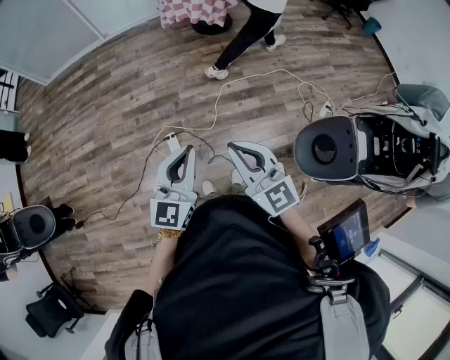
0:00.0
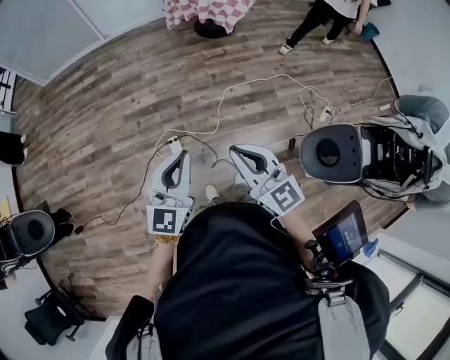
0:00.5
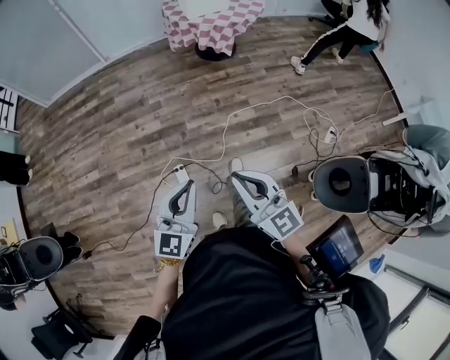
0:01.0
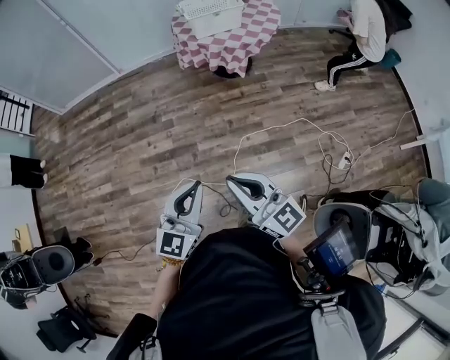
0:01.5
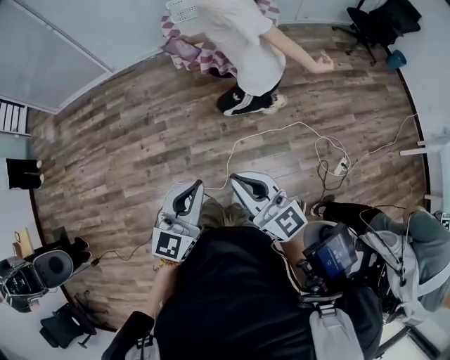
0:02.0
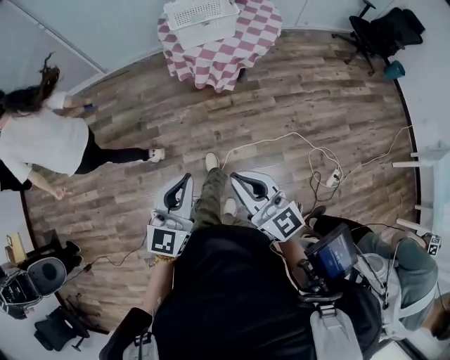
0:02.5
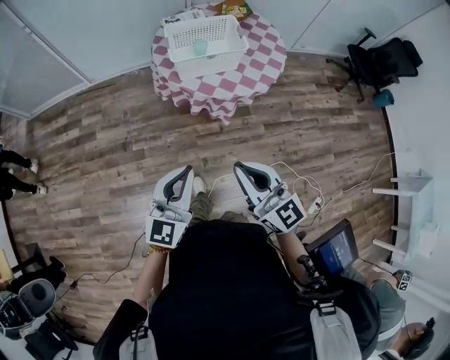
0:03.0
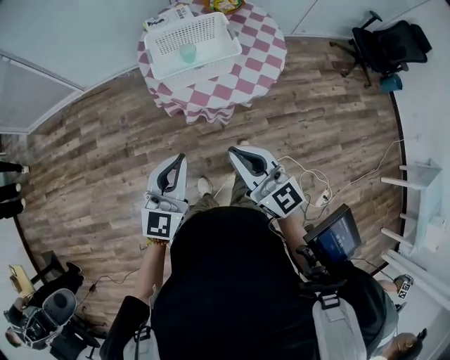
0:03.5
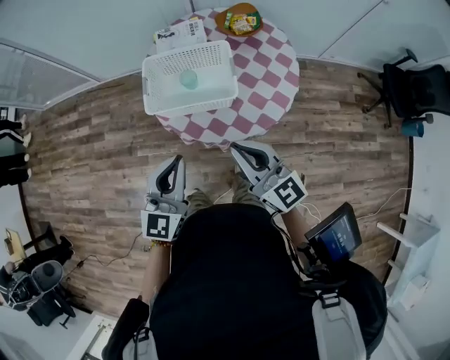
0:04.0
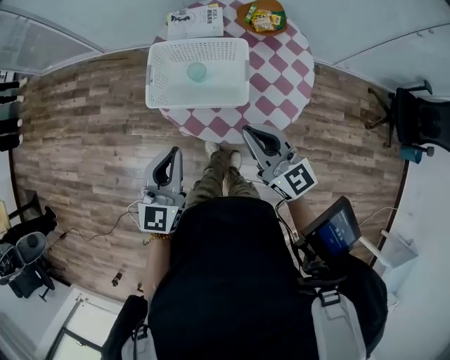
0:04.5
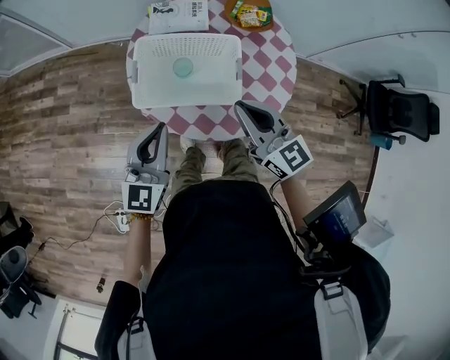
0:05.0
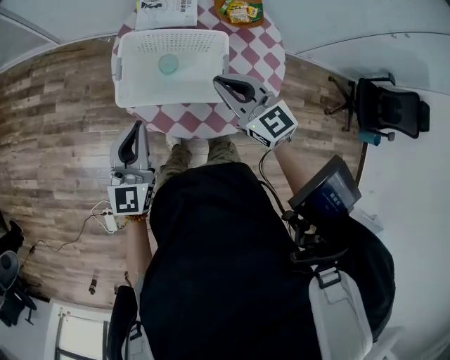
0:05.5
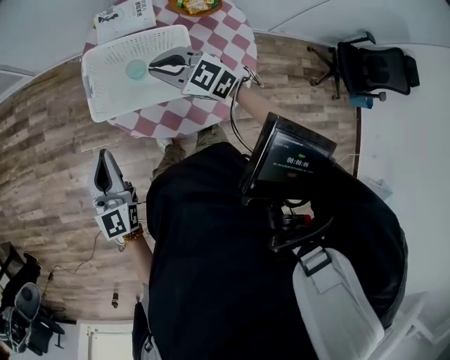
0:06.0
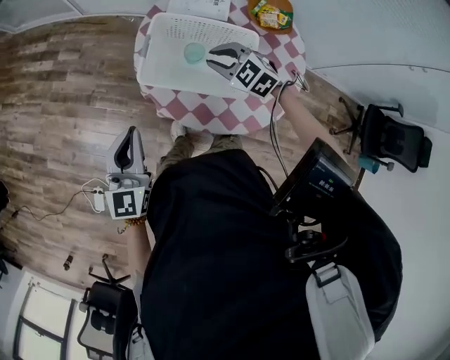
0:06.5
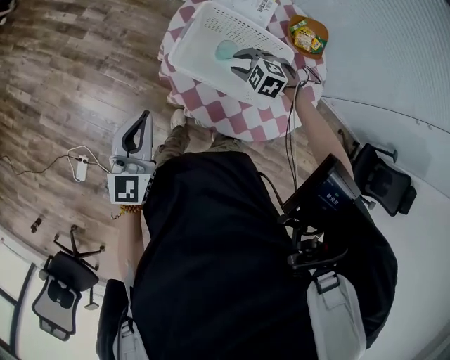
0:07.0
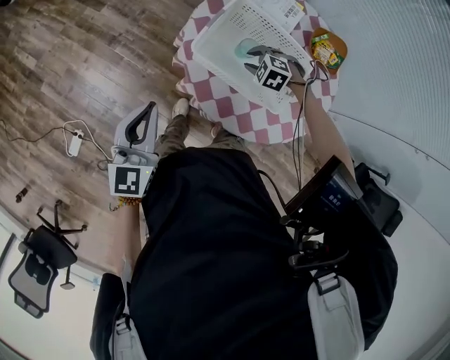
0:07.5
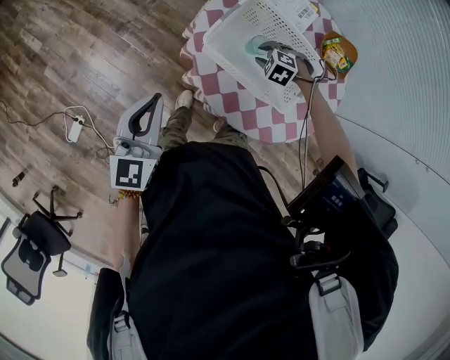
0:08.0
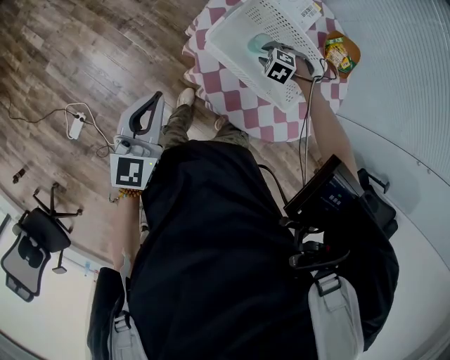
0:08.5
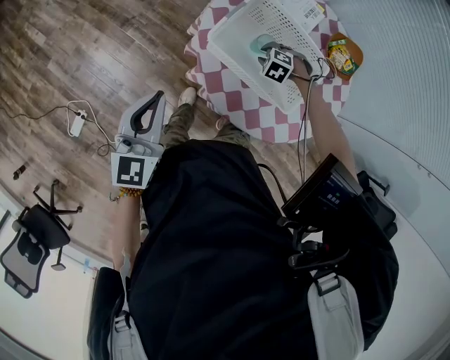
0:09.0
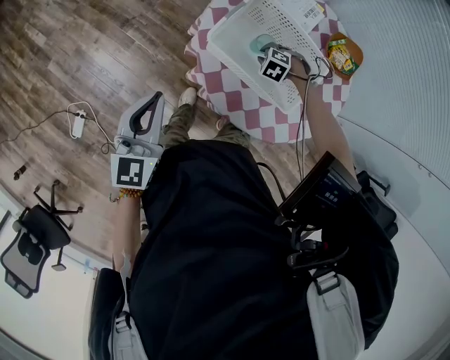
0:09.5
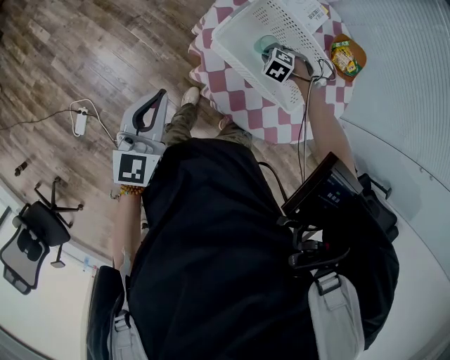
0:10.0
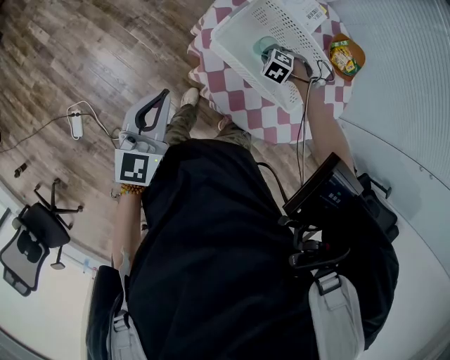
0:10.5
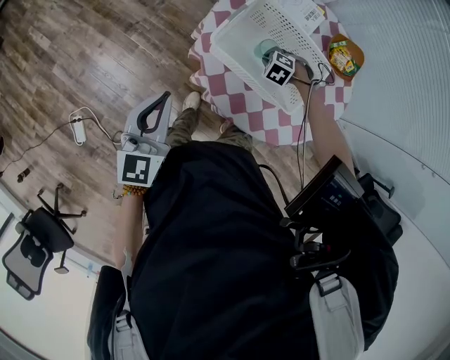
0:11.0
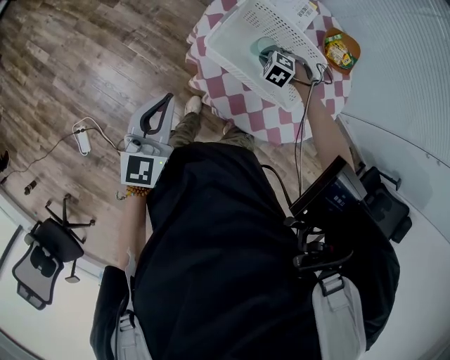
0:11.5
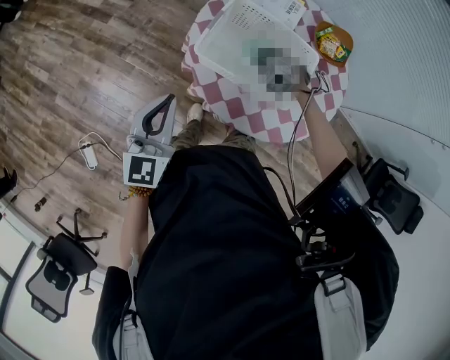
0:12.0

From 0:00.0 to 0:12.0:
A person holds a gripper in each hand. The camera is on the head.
From 0:00.0 to 0:02.0: Both grippers travel together forward, roughly 35 cm.
From 0:02.0 to 0:04.0: The pair of grippers is taken forward, approximately 70 cm.
From 0:04.0 to 0:06.0: The left gripper is displaced forward, to the left and downward by about 15 cm, and turns by about 20 degrees. Meanwhile the right gripper is displaced forward by approximately 25 cm, and turns by some 40 degrees.
From 0:06.0 to 0:08.0: The left gripper moves approximately 10 cm. Meanwhile the right gripper goes approximately 25 cm downward, angles its fingers downward, by about 50 degrees, and opens.
From 0:08.0 to 0:10.0: The right gripper closes.
From 0:10.0 to 0:12.0: The right gripper moves upward, some 10 cm.

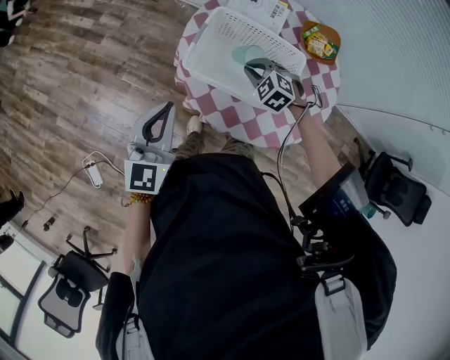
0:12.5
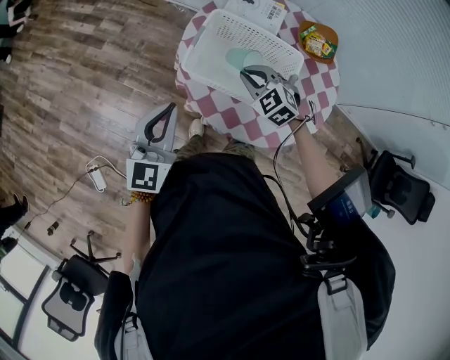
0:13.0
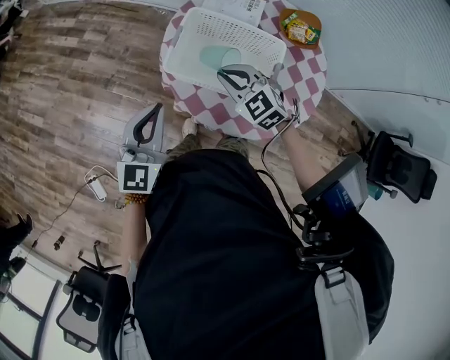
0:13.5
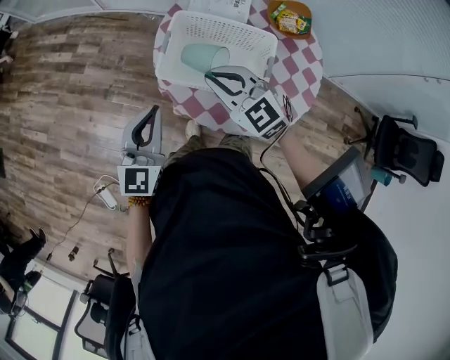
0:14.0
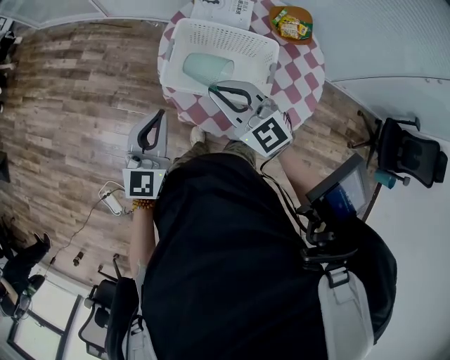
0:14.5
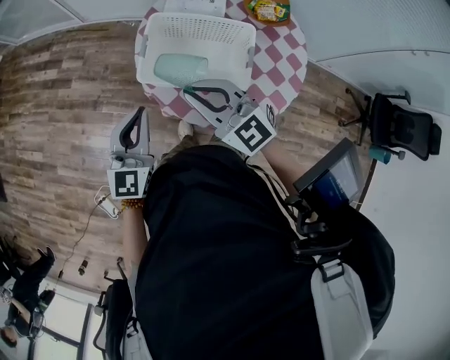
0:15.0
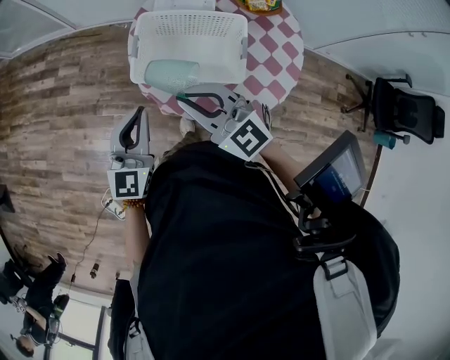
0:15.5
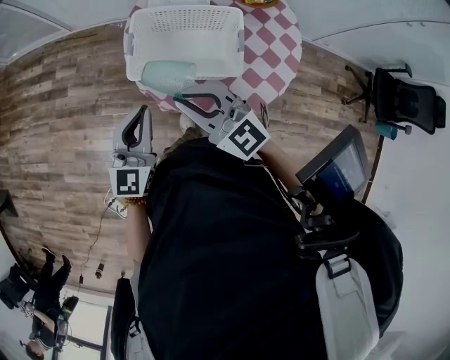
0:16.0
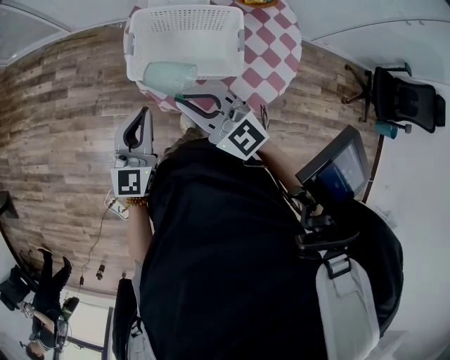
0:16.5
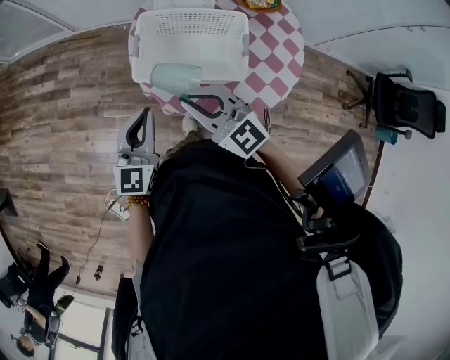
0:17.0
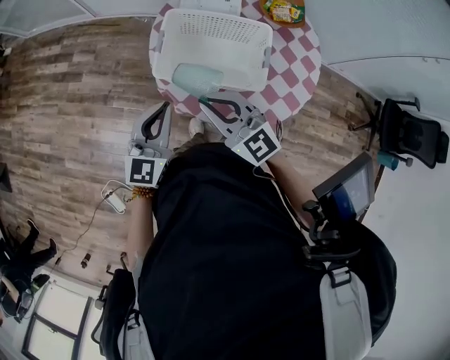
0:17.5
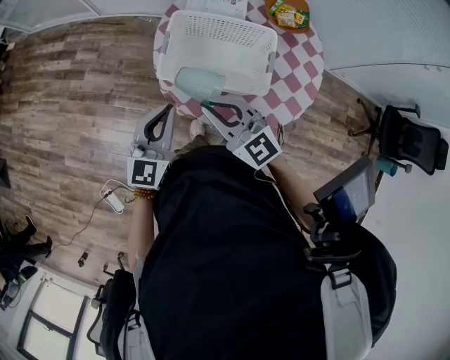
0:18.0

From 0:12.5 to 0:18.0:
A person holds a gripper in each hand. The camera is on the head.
From 0:12.5 to 0:14.5: The right gripper goes about 20 cm upward and backward, and tips its fingers upward by approximately 40 degrees.
From 0:14.5 to 0:16.0: The right gripper is displaced backward by approximately 5 cm.
From 0:16.0 to 0:18.0: The grippers make only small movements.

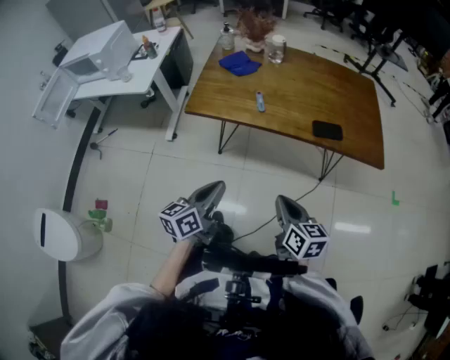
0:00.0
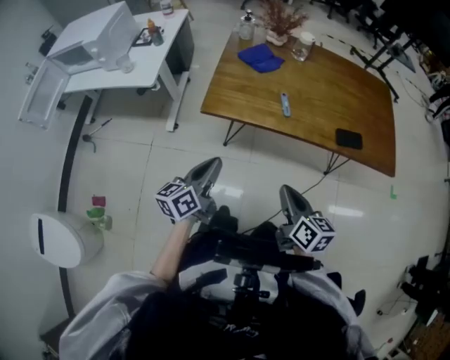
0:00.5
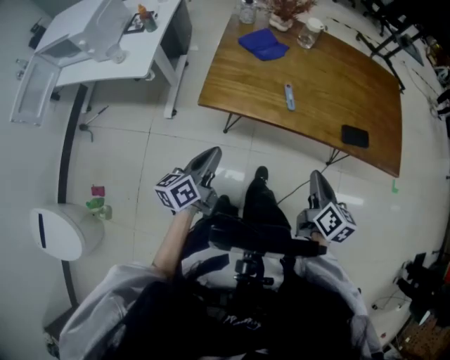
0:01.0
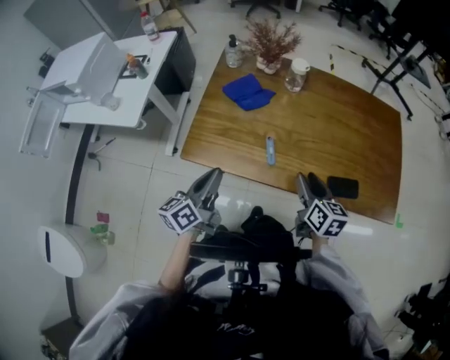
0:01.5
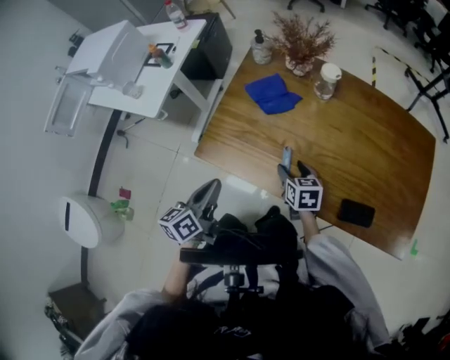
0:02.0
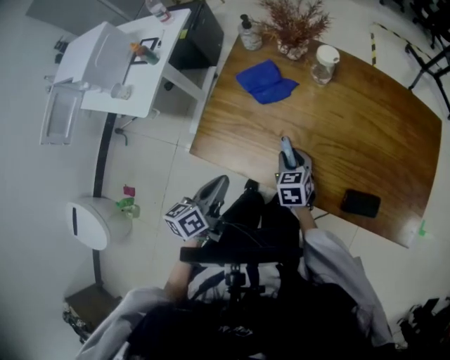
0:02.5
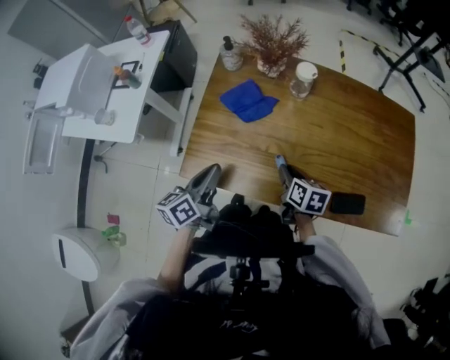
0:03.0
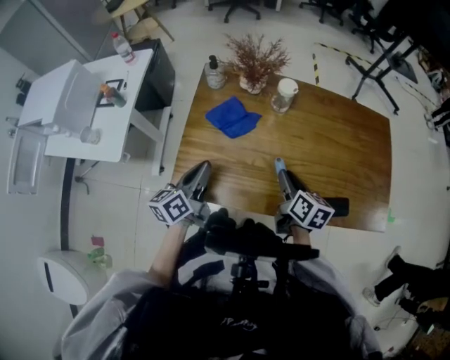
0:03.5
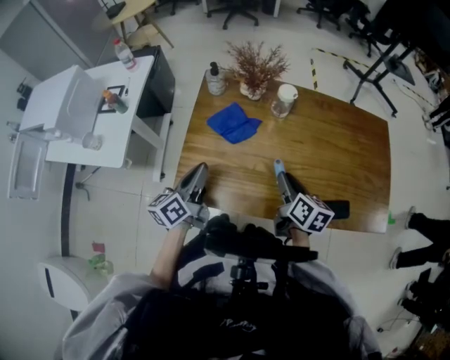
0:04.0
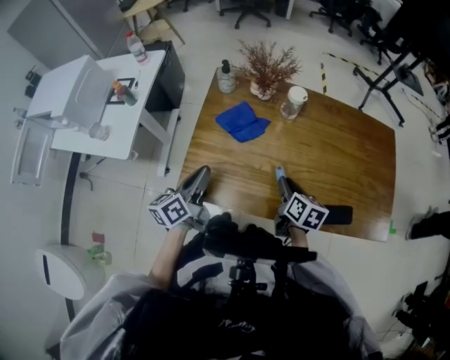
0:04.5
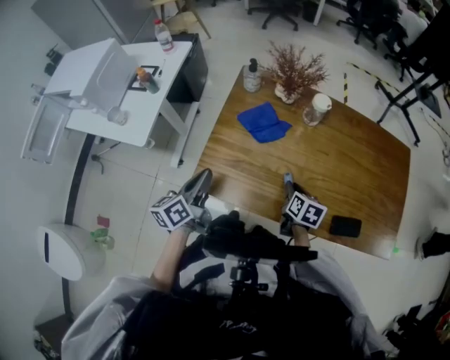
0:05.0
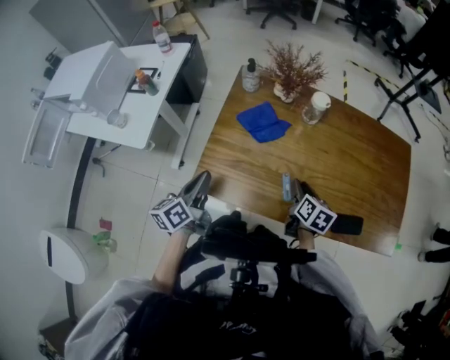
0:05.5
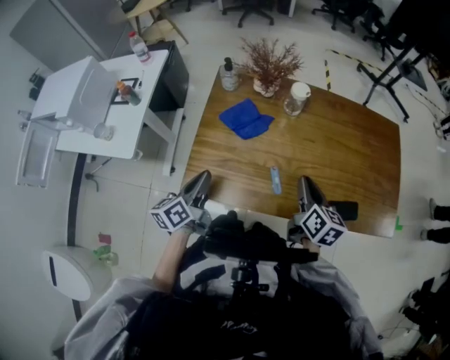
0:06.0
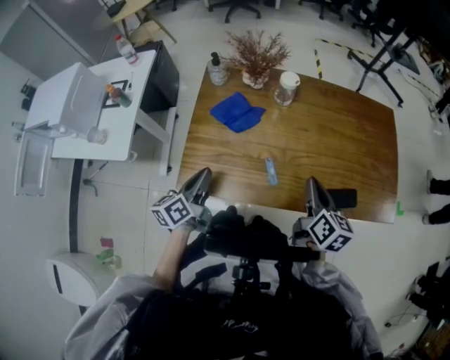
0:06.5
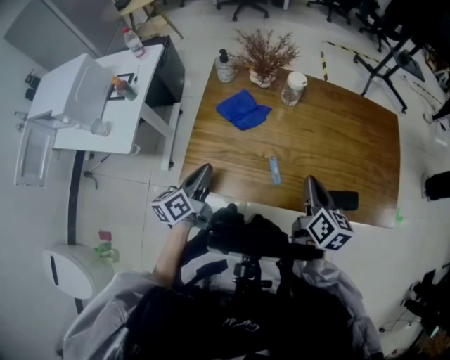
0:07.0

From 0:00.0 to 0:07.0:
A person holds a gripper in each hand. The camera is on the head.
From 0:00.0 to 0:02.0: Both grippers move forward, about 35 cm. The right gripper rotates approximately 20 degrees, and opens; the left gripper changes its angle by roughly 20 degrees.
From 0:02.0 to 0:03.5: The left gripper heads forward, covering about 15 cm. The right gripper is displaced upward and to the right by about 15 cm, rotates some 40 degrees, and closes up.
From 0:03.5 to 0:05.0: The right gripper moves downward, about 10 cm. The left gripper shifts approximately 5 cm to the left.
From 0:05.0 to 0:07.0: The right gripper travels upward by roughly 15 cm, and swivels approximately 20 degrees.

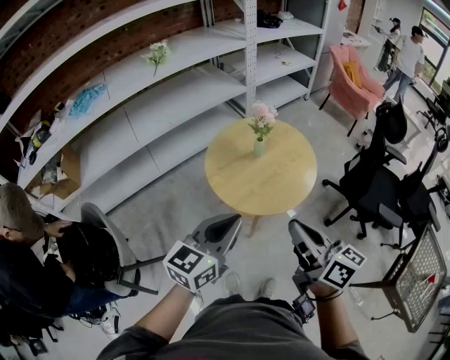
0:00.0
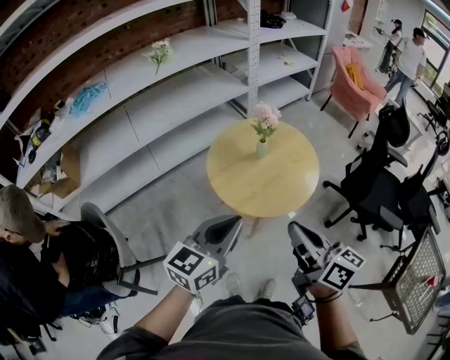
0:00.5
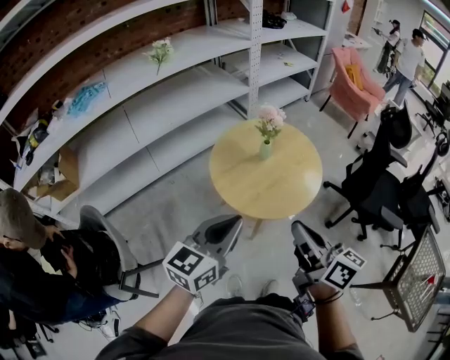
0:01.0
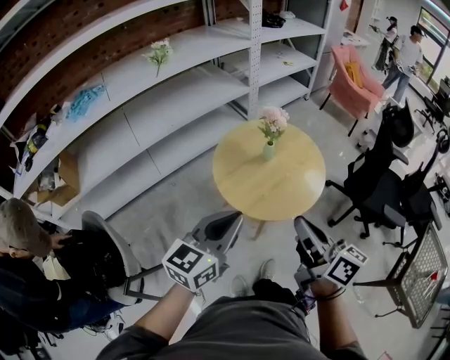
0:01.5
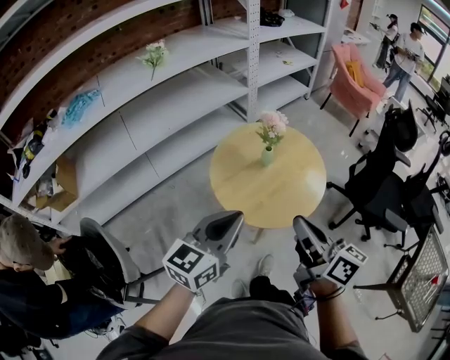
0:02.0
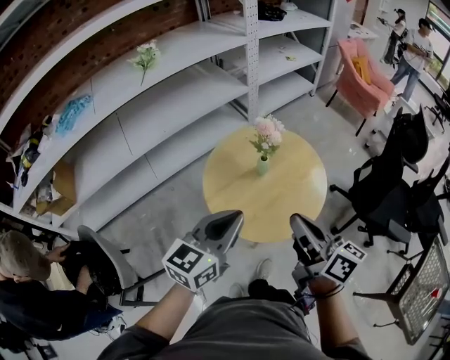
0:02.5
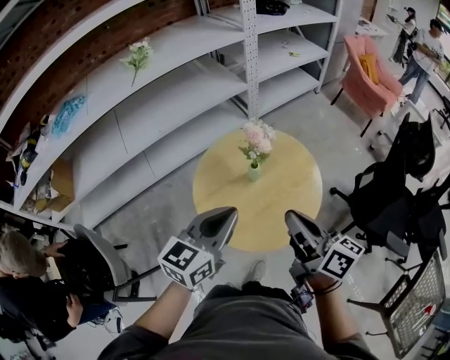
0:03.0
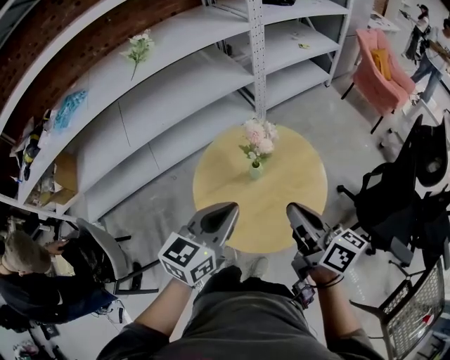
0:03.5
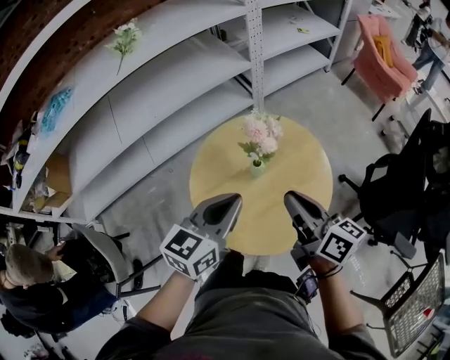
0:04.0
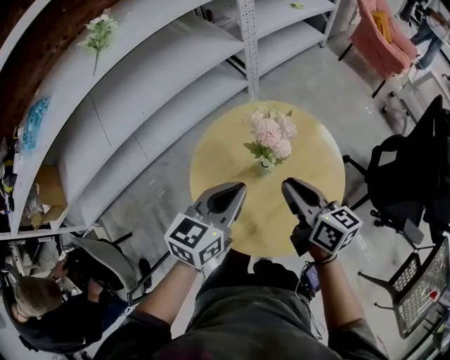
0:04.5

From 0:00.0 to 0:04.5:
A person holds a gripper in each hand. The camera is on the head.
From 0:00.0 to 0:02.0: The two grippers go roughly 10 cm forward.
From 0:02.0 to 0:04.5: Both grippers move forward and downward, approximately 35 cm.
